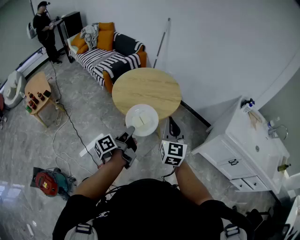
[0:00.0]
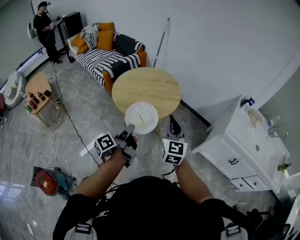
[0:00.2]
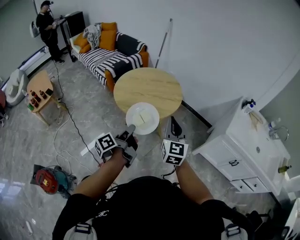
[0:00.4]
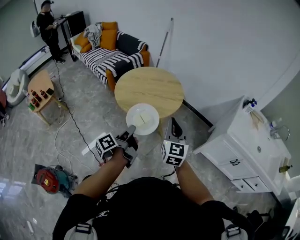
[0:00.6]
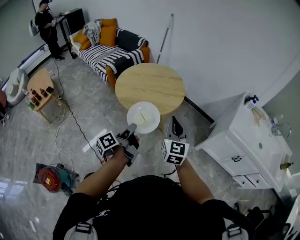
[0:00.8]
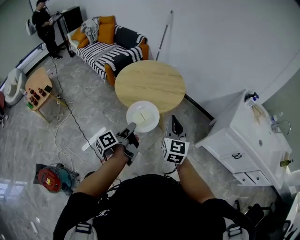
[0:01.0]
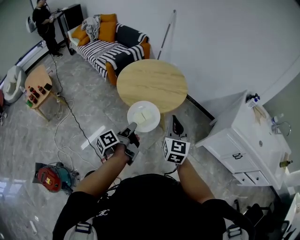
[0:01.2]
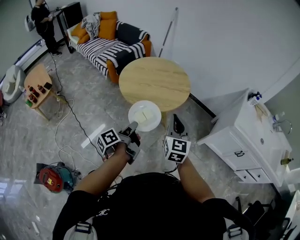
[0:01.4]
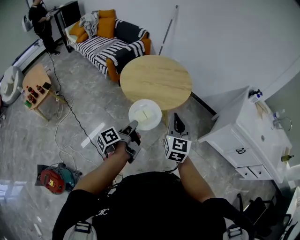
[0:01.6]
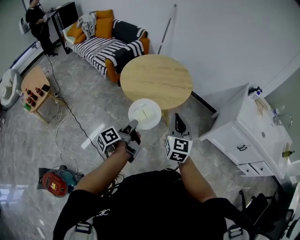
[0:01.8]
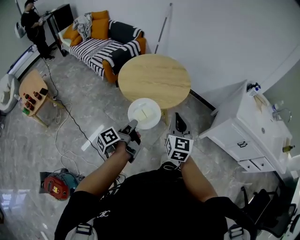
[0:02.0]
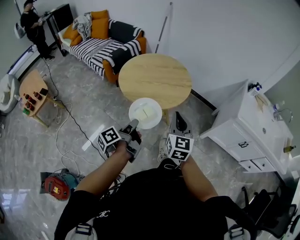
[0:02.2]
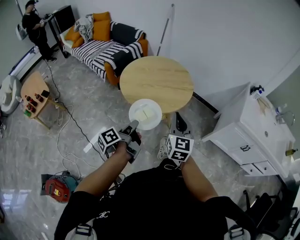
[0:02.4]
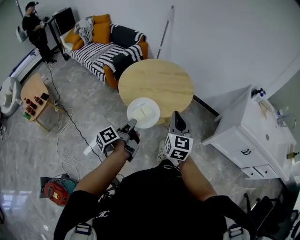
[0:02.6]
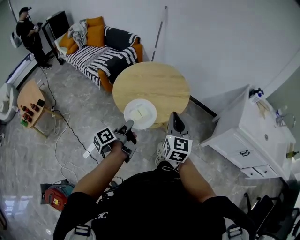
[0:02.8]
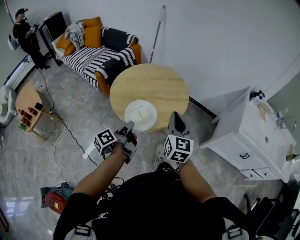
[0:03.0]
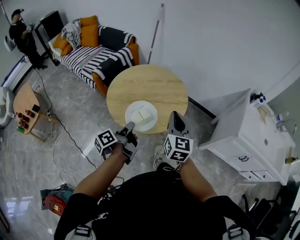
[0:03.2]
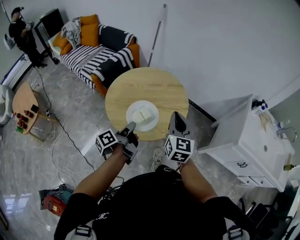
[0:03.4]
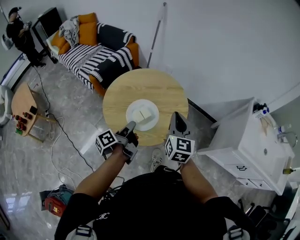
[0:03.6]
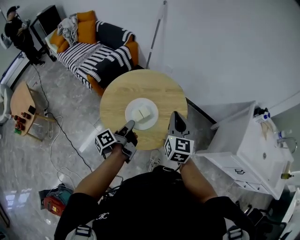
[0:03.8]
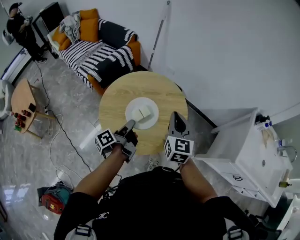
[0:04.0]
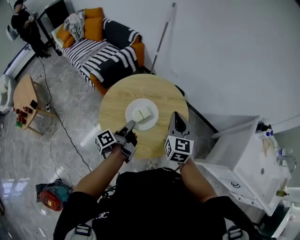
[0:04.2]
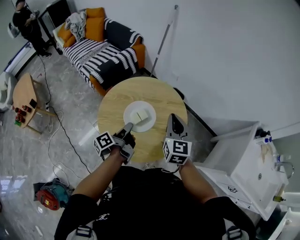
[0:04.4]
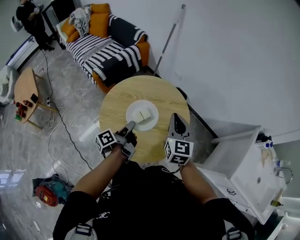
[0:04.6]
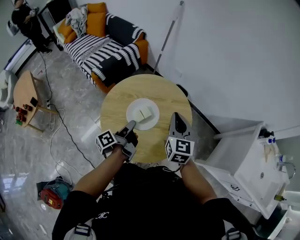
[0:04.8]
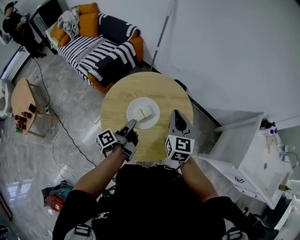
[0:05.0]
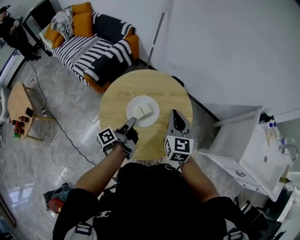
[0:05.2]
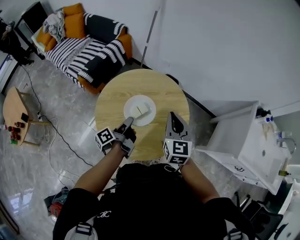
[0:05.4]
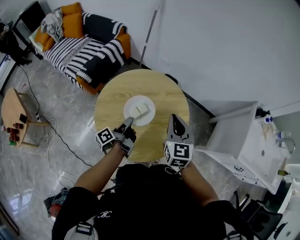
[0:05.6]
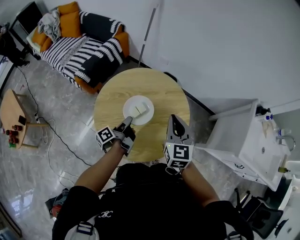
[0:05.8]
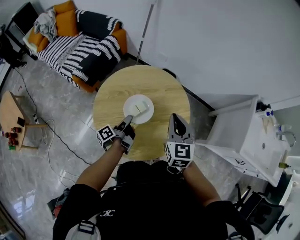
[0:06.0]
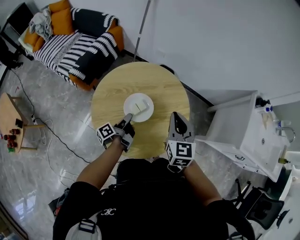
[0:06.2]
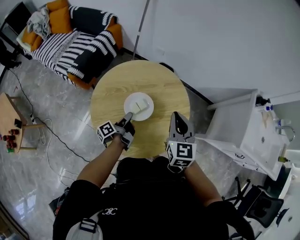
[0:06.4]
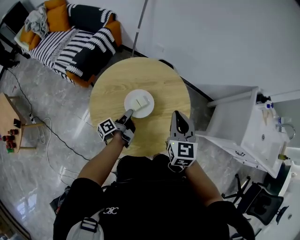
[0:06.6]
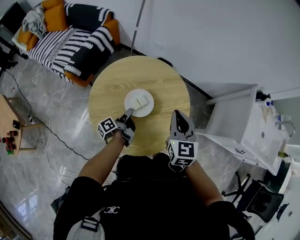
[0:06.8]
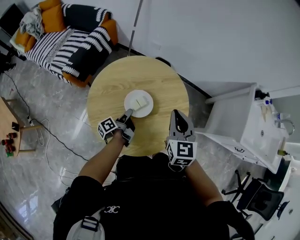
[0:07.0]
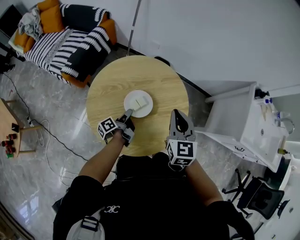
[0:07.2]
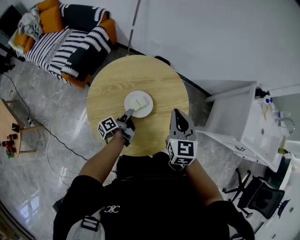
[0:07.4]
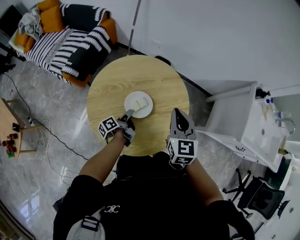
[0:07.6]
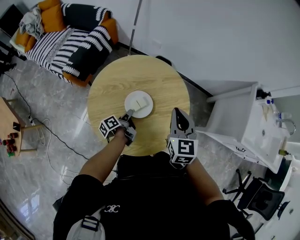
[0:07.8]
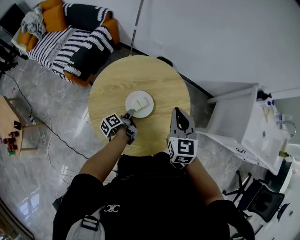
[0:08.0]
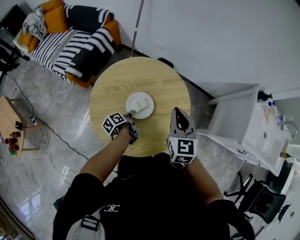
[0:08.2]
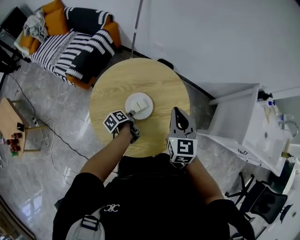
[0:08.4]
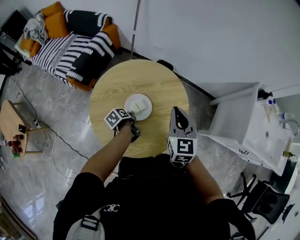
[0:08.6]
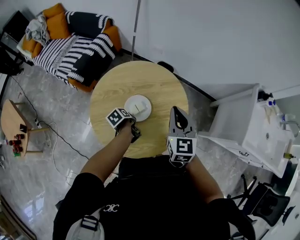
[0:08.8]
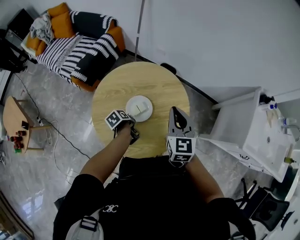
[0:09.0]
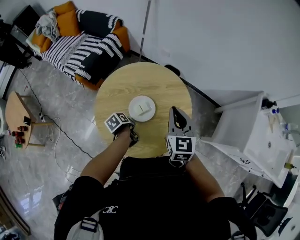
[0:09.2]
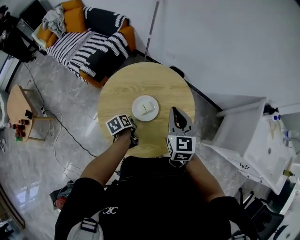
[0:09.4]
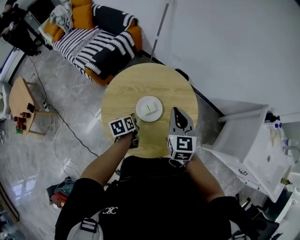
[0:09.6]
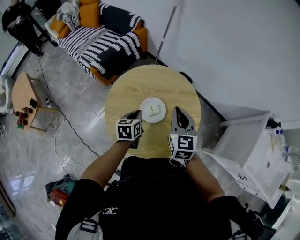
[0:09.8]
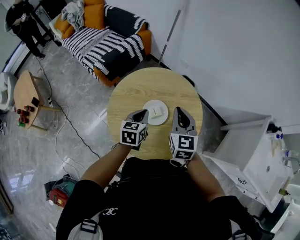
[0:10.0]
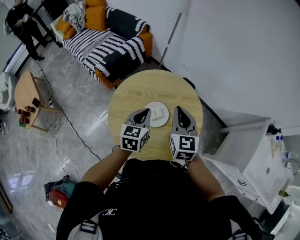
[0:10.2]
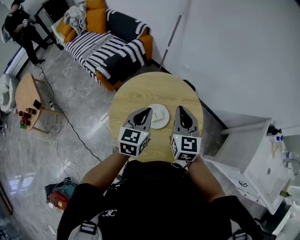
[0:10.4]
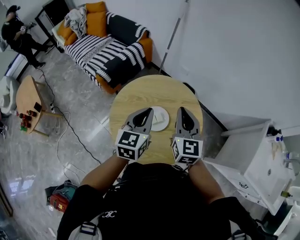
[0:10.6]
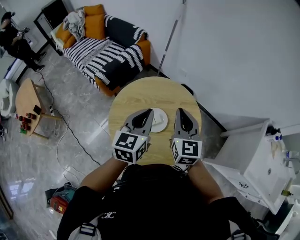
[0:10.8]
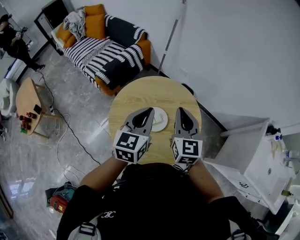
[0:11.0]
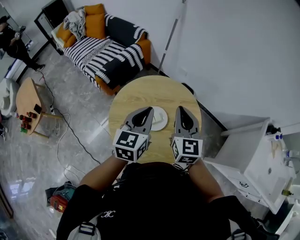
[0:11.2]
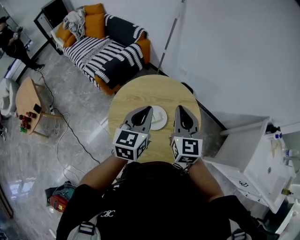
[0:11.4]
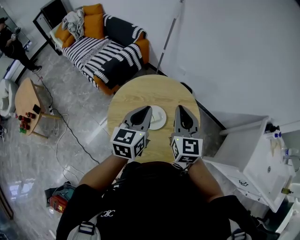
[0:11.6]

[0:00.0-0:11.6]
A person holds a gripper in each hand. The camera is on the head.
0:00.0 to 0:01.4: The right gripper moves about 5 cm.
0:01.4 to 0:02.8: The right gripper changes place by about 10 cm.
0:02.8 to 0:04.4: The right gripper changes place by some 30 cm.
0:08.8 to 0:10.2: The right gripper shifts by some 10 cm.
0:10.2 to 0:11.6: The right gripper travels upward by some 5 cm.

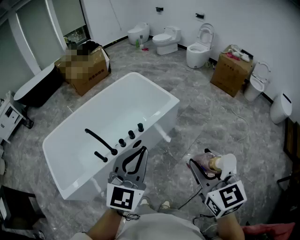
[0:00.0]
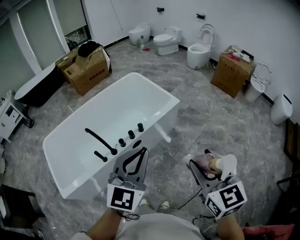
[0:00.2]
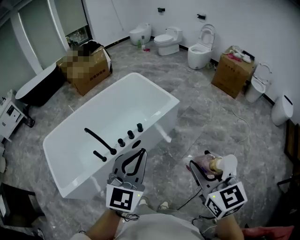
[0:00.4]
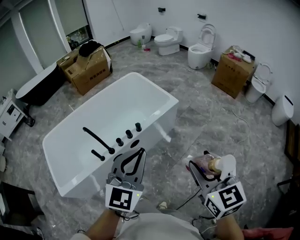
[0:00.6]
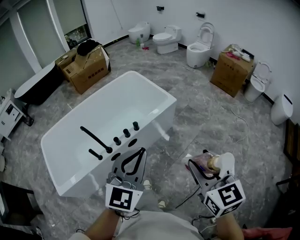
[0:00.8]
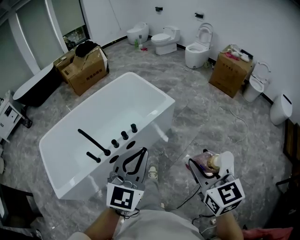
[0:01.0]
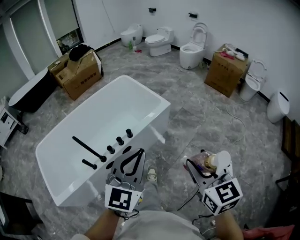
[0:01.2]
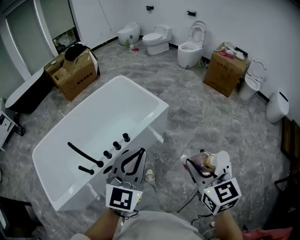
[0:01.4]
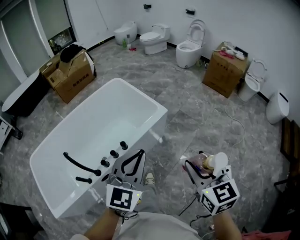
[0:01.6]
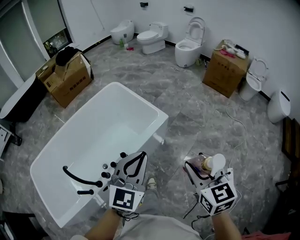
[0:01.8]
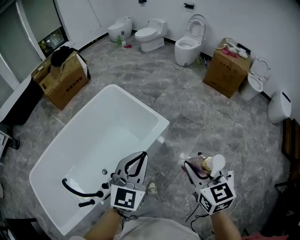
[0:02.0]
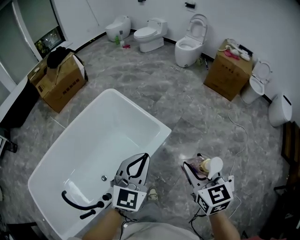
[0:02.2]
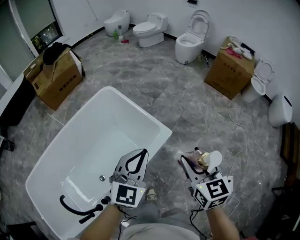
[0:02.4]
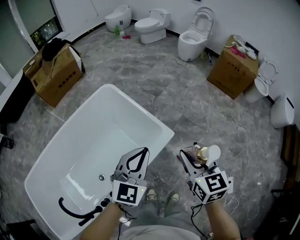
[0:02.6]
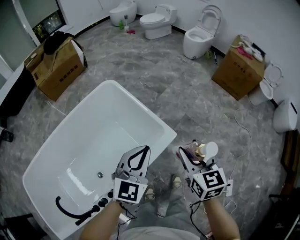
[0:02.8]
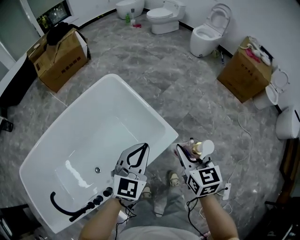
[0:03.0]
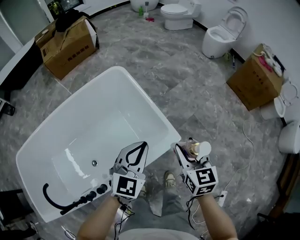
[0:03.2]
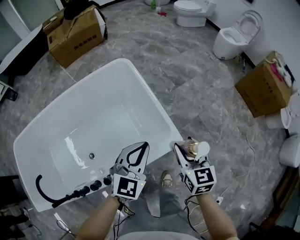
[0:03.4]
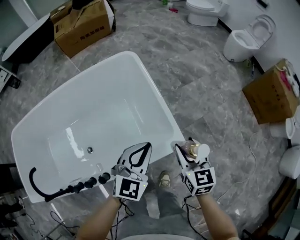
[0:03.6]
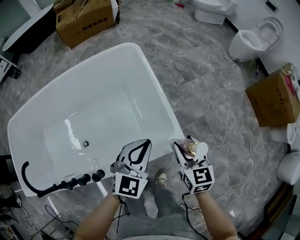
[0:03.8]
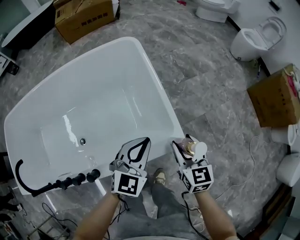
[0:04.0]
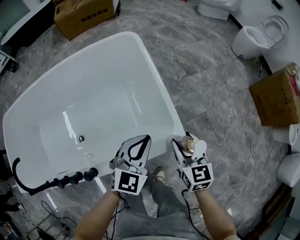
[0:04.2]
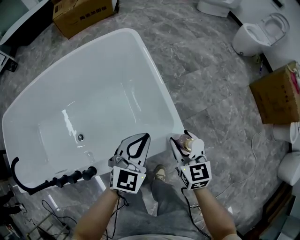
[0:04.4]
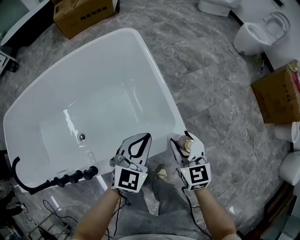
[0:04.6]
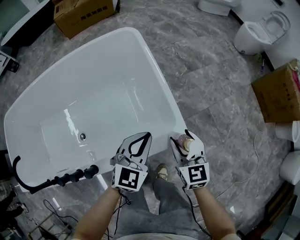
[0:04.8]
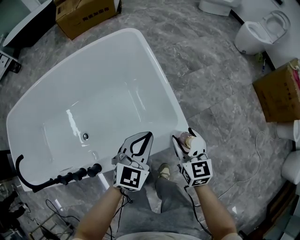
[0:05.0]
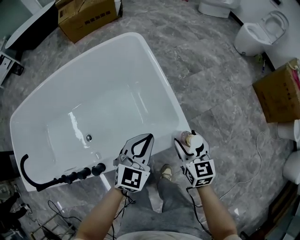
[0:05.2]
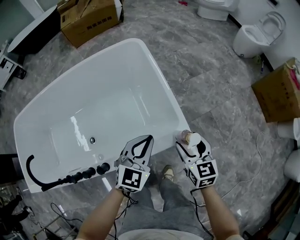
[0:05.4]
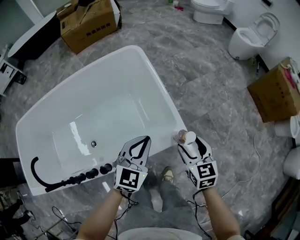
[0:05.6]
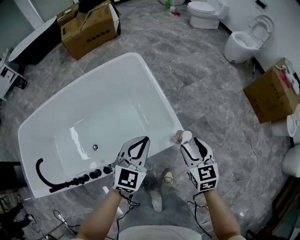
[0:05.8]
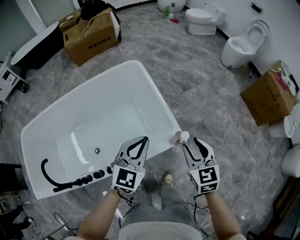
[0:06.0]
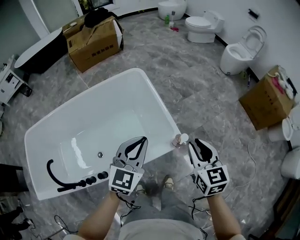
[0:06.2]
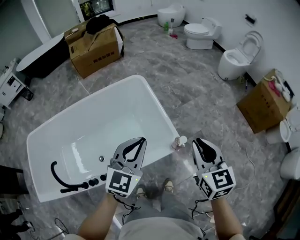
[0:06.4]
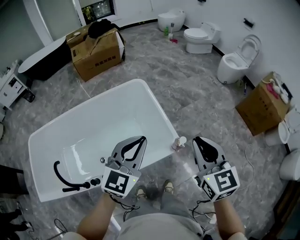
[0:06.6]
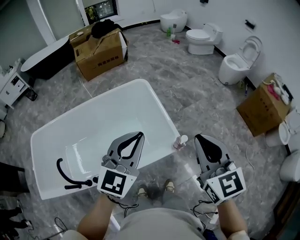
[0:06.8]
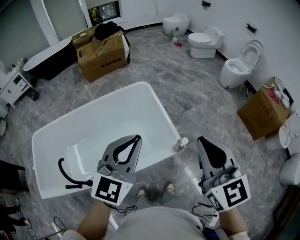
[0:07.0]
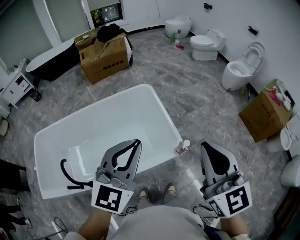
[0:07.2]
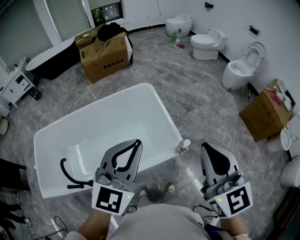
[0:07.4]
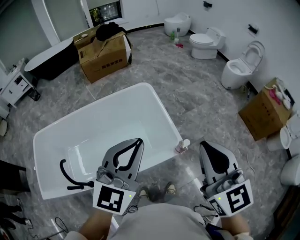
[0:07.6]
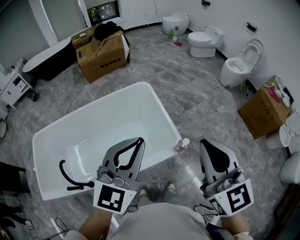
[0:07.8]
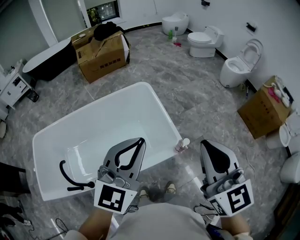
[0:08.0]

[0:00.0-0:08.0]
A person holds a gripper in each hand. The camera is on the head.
0:00.0 to 0:01.6: The left gripper shifts roughly 20 cm forward and to the right; the right gripper heads forward, to the right and downward, covering roughly 20 cm.
0:01.6 to 0:03.2: Both grippers are carried forward, some 50 cm. Both grippers travel together downward, roughly 20 cm.
0:03.2 to 0:04.8: The two grippers go approximately 20 cm downward.
0:04.8 to 0:06.4: The grippers both shift upward by about 35 cm. The right gripper closes up.
0:06.4 to 0:08.0: Both grippers travel together upward, roughly 15 cm.

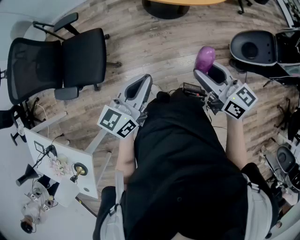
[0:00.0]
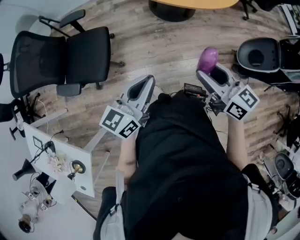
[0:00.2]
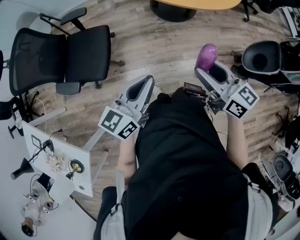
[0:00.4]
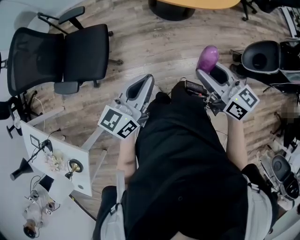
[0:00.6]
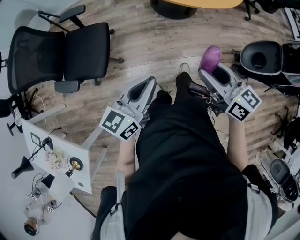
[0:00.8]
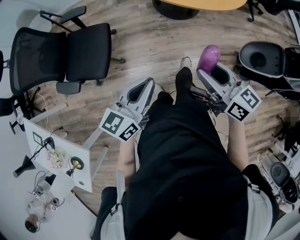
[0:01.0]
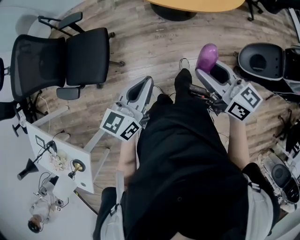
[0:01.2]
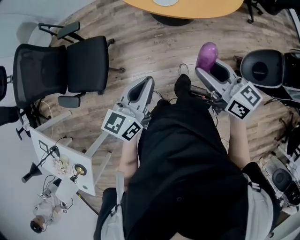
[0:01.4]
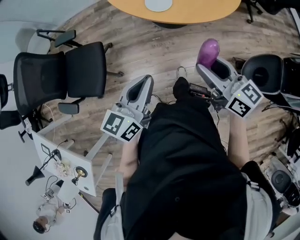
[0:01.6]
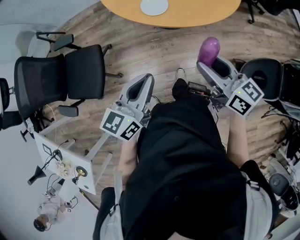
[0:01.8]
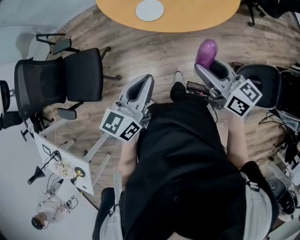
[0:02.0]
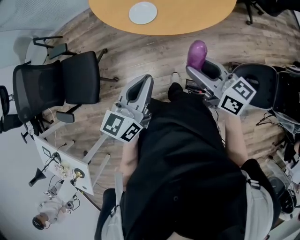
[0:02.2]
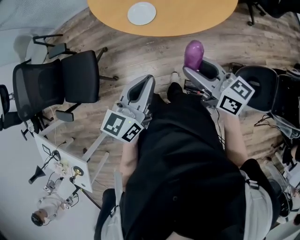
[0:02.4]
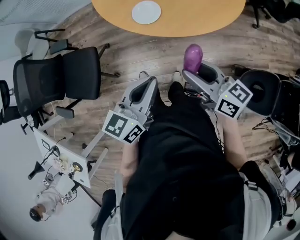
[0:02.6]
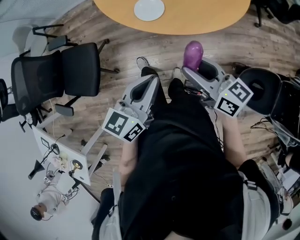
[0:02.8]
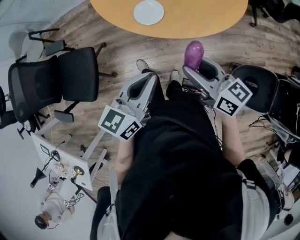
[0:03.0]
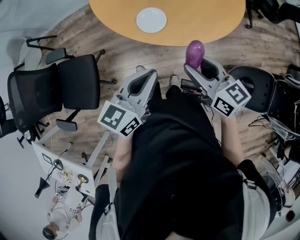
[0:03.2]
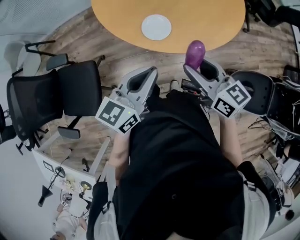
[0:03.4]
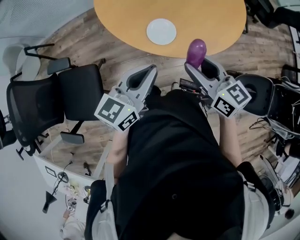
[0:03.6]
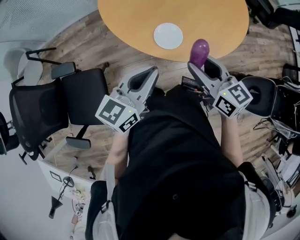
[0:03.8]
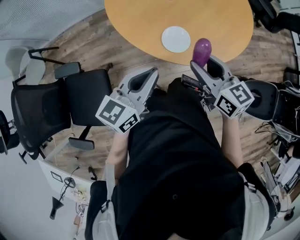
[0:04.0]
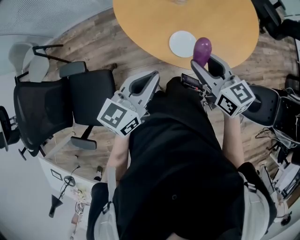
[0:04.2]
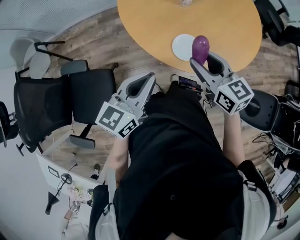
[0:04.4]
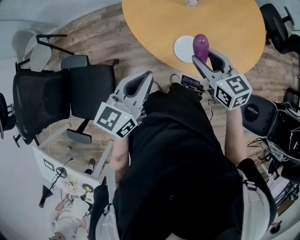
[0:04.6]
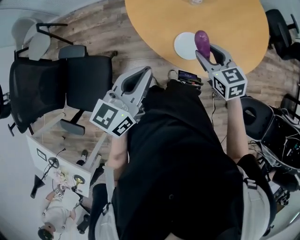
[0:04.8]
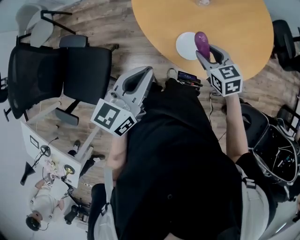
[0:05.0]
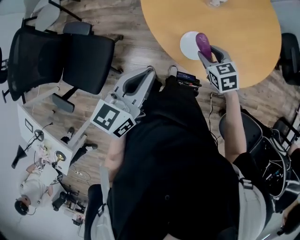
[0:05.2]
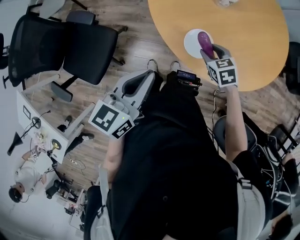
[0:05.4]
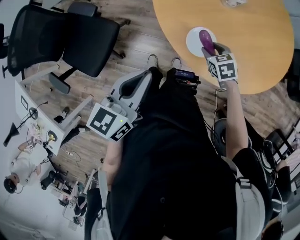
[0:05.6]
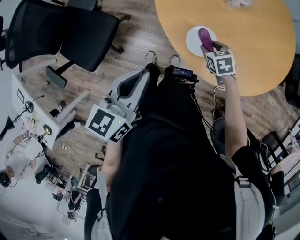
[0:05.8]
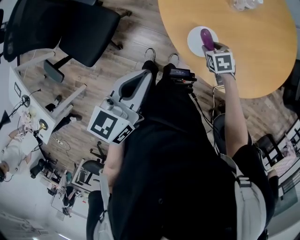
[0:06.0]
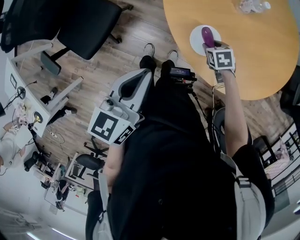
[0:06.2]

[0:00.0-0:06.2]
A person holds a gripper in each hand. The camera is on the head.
0:00.0 to 0:01.6: The two grippers go about 20 cm forward and to the right.
0:01.6 to 0:03.2: The right gripper goes about 15 cm forward. The left gripper moves forward and to the right, some 20 cm.
0:03.2 to 0:04.6: The right gripper heads forward and to the left, covering roughly 20 cm; the left gripper shifts roughly 20 cm to the left and forward.
0:04.6 to 0:06.2: The left gripper moves roughly 5 cm, and swivels some 40 degrees. The right gripper heads downward, covering approximately 25 cm, and tilts its fingers approximately 40 degrees downward.
